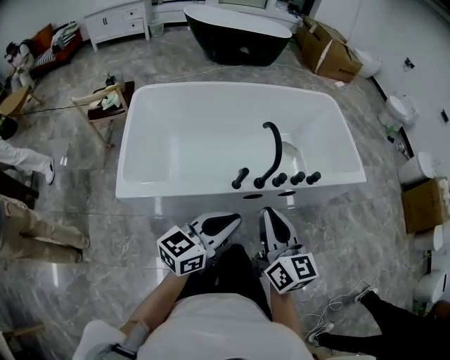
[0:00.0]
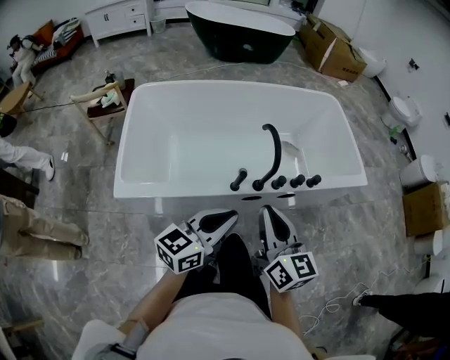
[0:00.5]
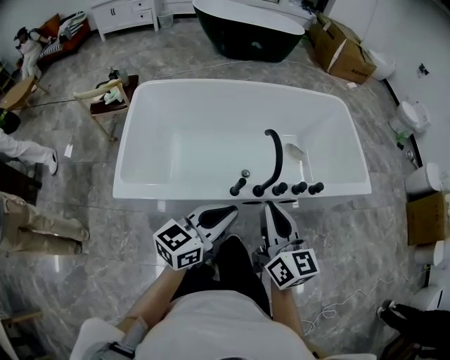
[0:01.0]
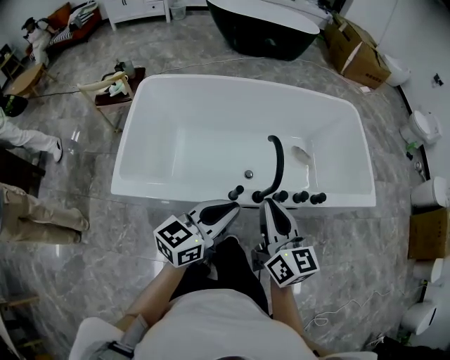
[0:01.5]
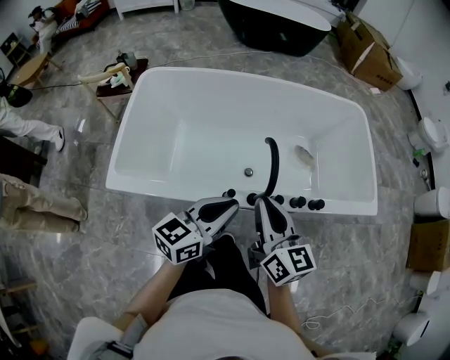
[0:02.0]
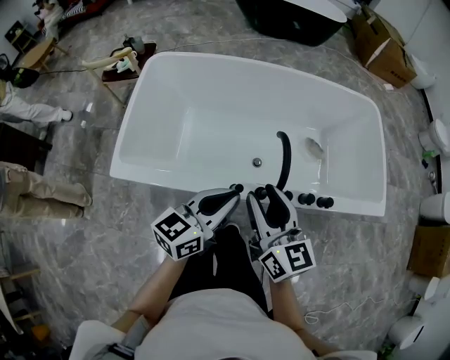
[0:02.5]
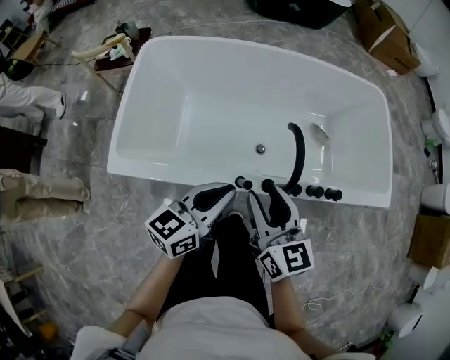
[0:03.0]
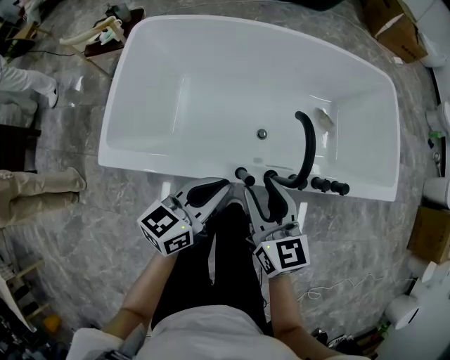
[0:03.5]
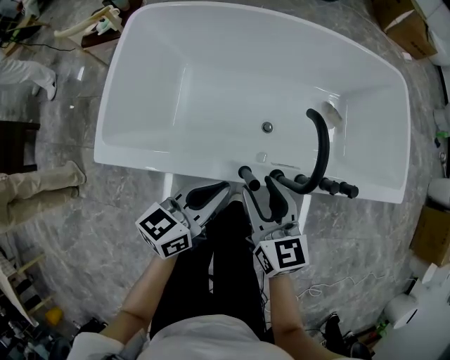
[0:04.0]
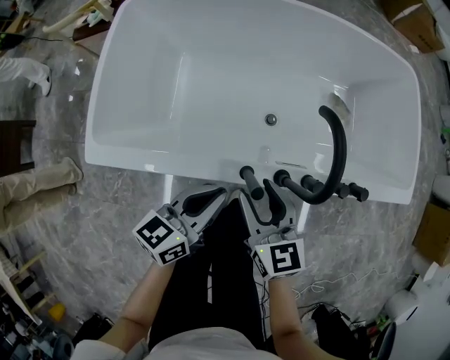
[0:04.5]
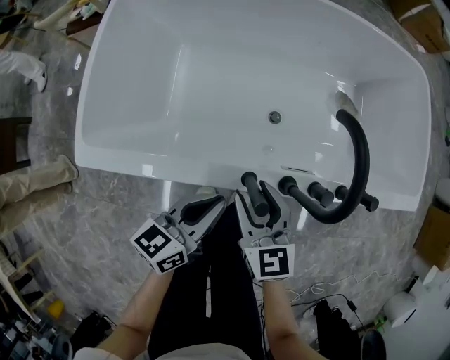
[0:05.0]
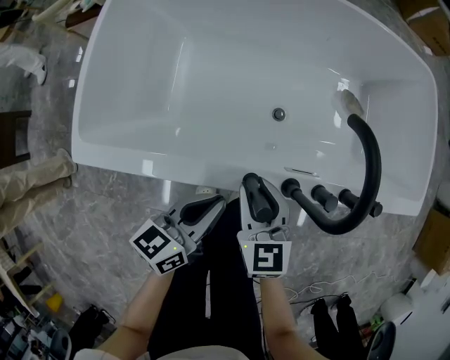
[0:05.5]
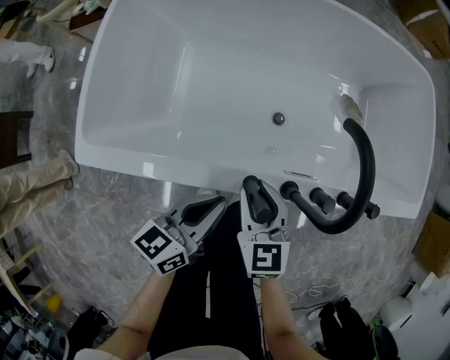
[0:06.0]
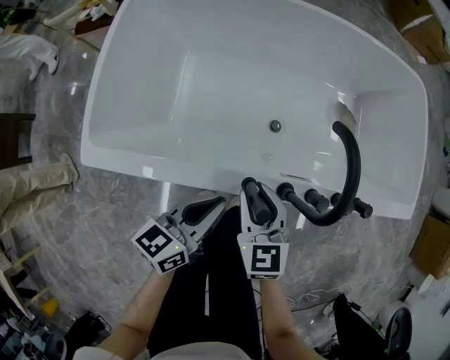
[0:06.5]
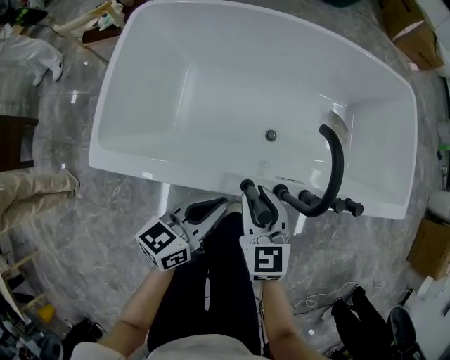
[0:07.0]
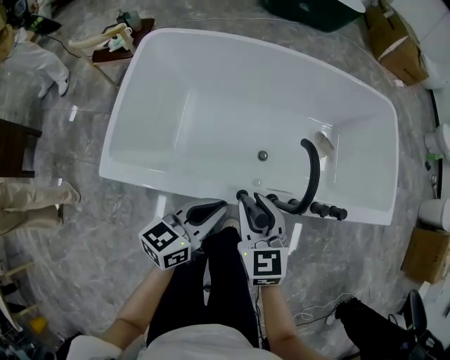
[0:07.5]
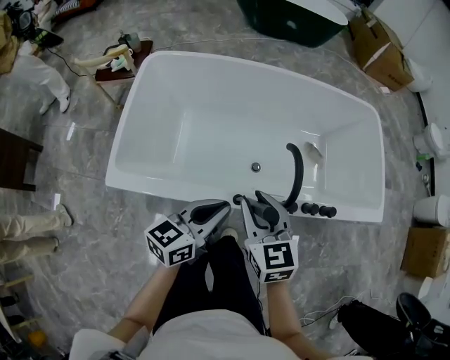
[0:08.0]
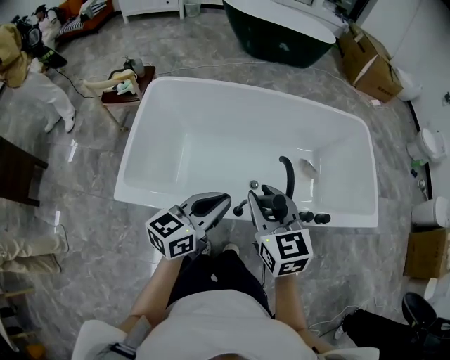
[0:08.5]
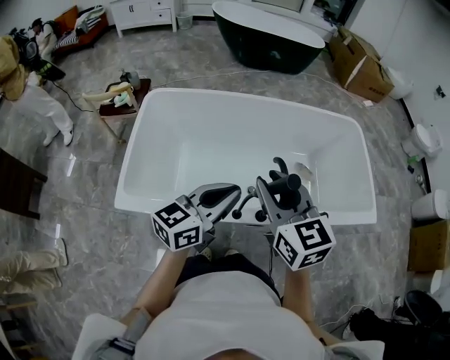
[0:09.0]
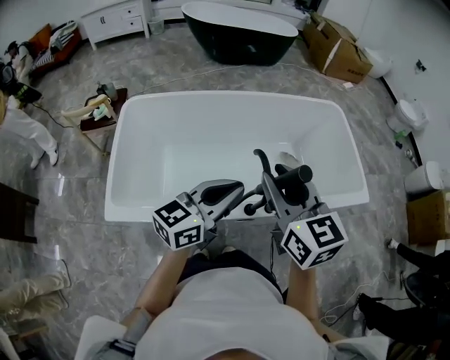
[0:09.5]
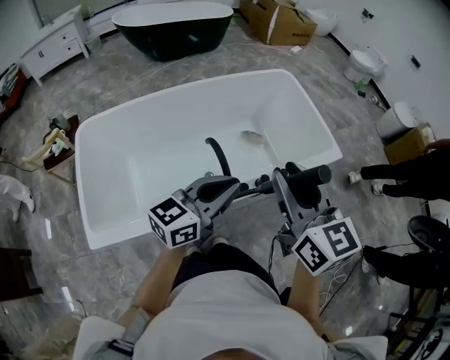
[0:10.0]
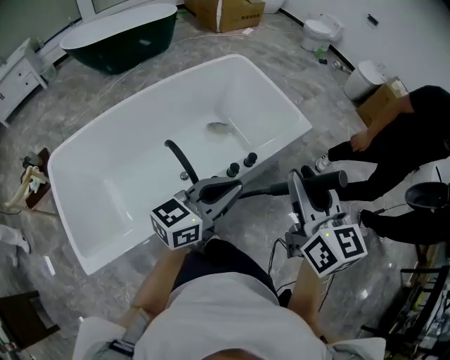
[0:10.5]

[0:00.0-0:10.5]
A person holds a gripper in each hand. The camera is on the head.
0:00.0 to 0:02.0: Both grippers travel together forward, roughly 15 cm.
0:02.0 to 0:04.0: Both grippers travel together downward and to the left, approximately 15 cm. The right gripper opens its fingers.
0:04.0 to 0:06.5: The grippers both shift downward by roughly 10 cm.
0:06.5 to 0:08.5: Both grippers travel together upward, roughly 25 cm.
0:08.5 to 0:10.5: The right gripper moves approximately 35 cm, and changes its angle by some 50 degrees. Meanwhile the left gripper moves about 30 cm, and swivels approximately 50 degrees.

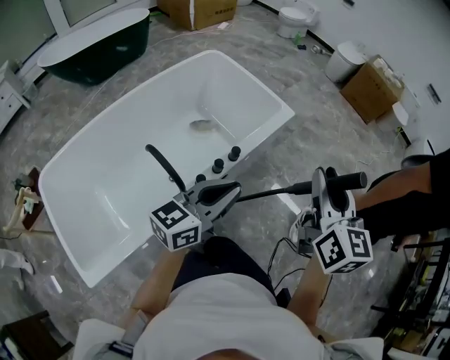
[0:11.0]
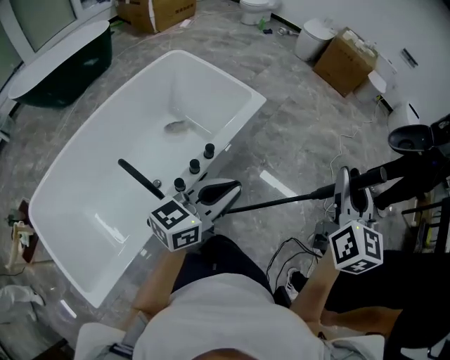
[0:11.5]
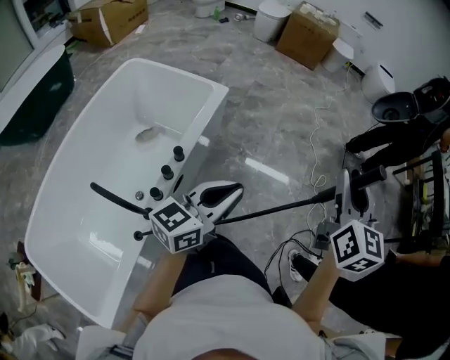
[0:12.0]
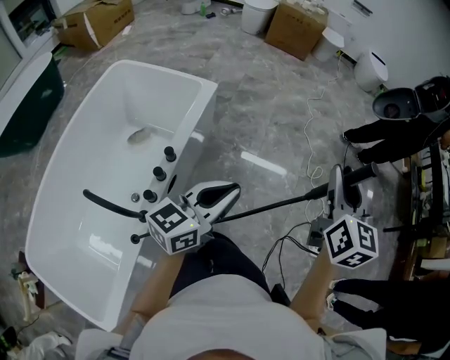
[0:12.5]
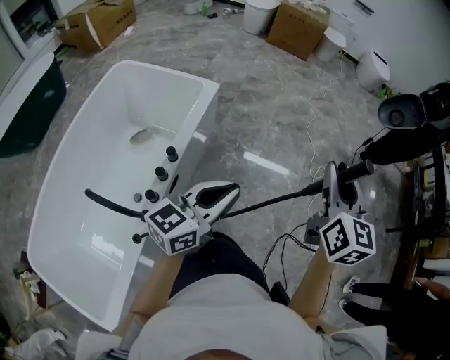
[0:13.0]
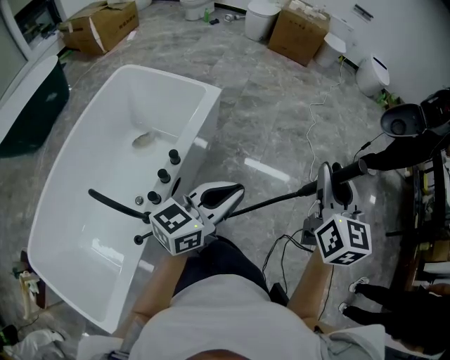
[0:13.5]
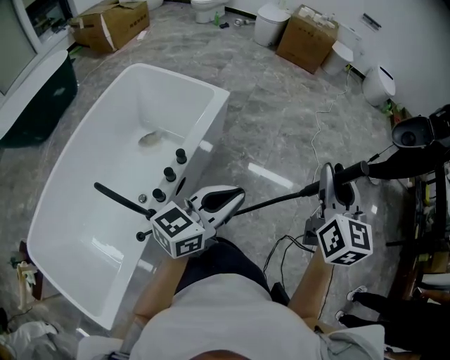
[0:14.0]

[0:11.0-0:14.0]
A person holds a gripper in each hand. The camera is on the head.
0:11.0 to 0:12.5: The right gripper shifts by roughly 25 cm, and rotates some 40 degrees. Meanwhile the left gripper moves roughly 20 cm, and swivels roughly 30 degrees.
0:12.5 to 0:14.0: The grippers move only a little.

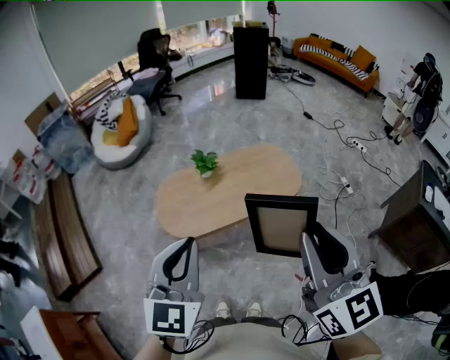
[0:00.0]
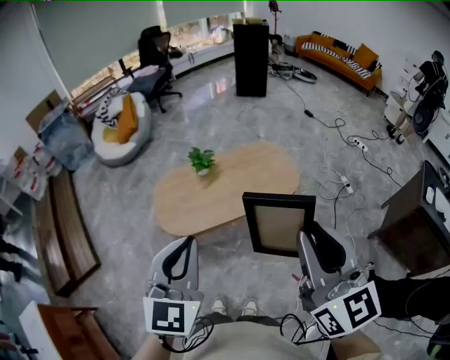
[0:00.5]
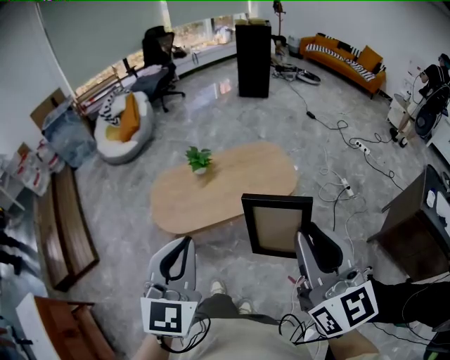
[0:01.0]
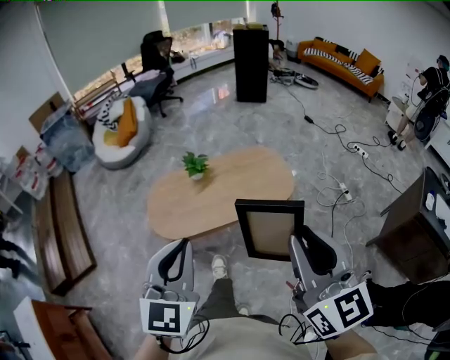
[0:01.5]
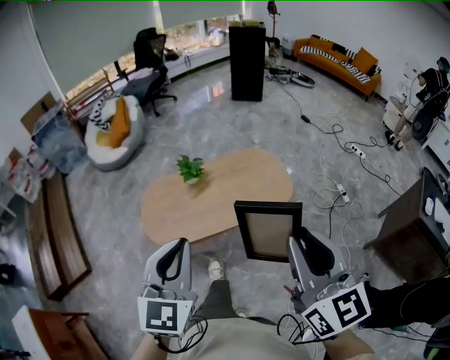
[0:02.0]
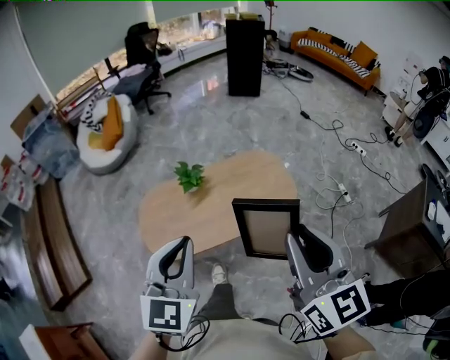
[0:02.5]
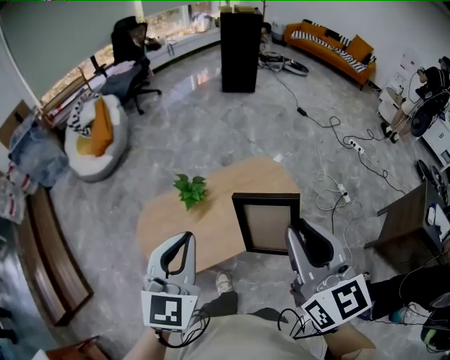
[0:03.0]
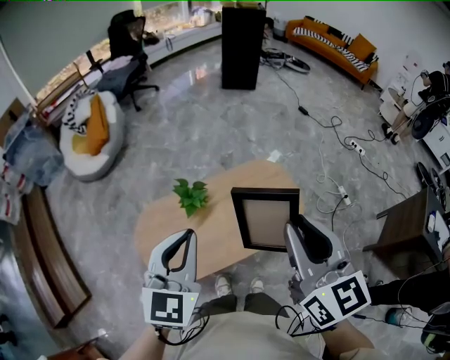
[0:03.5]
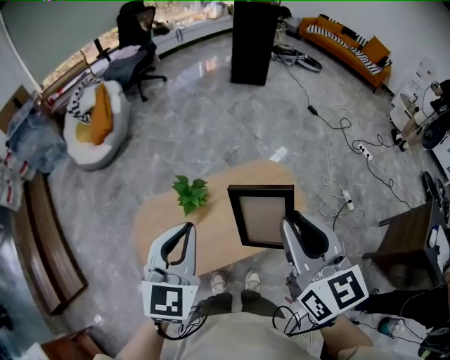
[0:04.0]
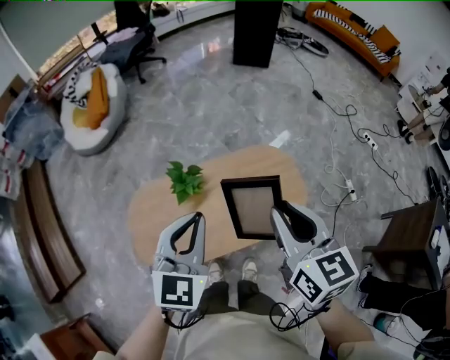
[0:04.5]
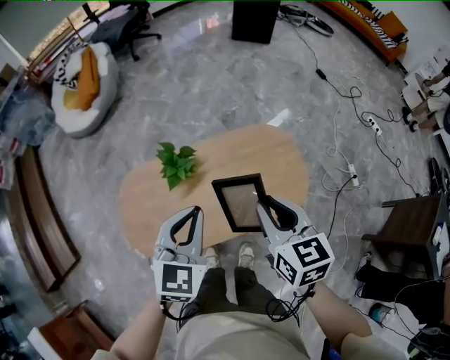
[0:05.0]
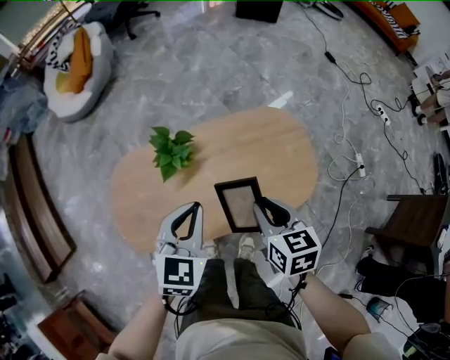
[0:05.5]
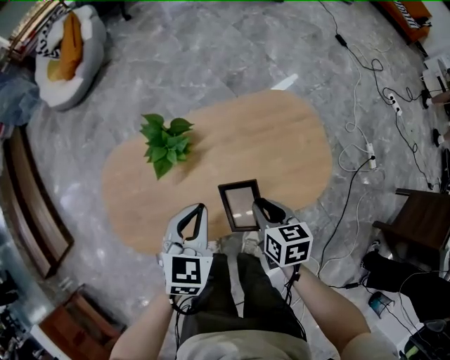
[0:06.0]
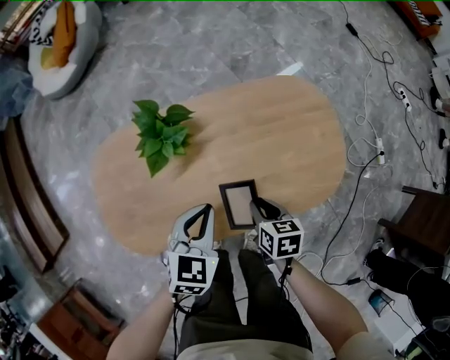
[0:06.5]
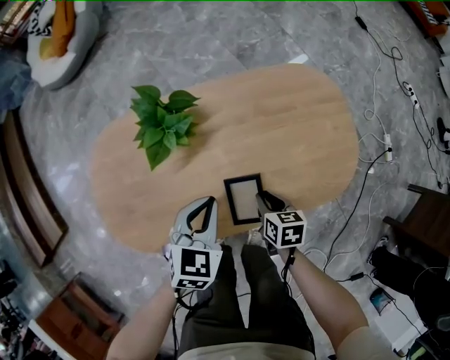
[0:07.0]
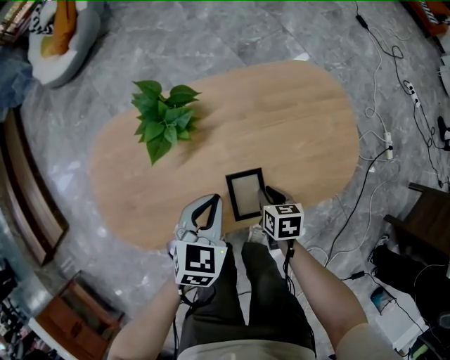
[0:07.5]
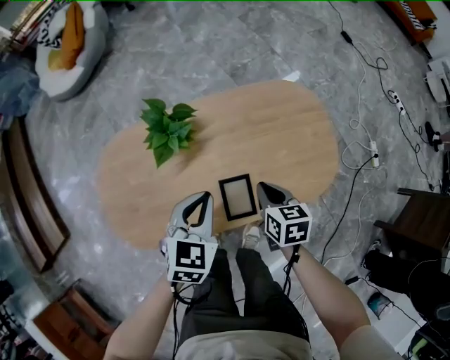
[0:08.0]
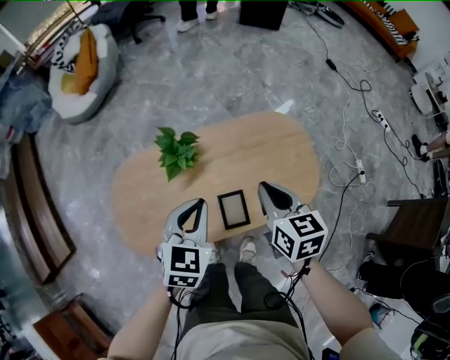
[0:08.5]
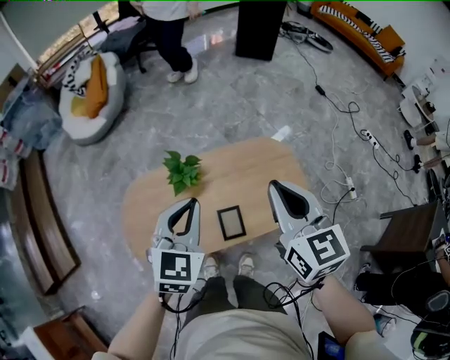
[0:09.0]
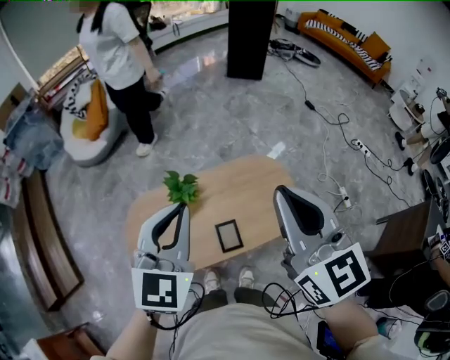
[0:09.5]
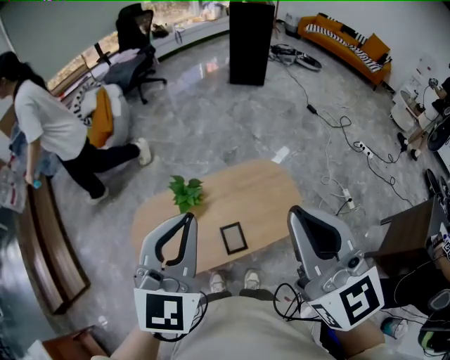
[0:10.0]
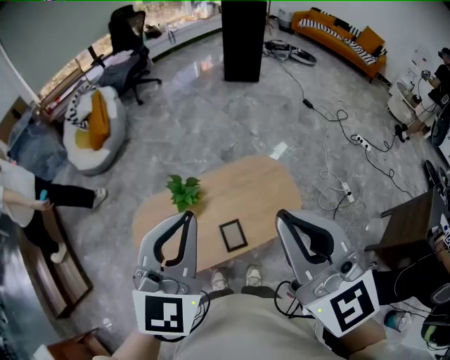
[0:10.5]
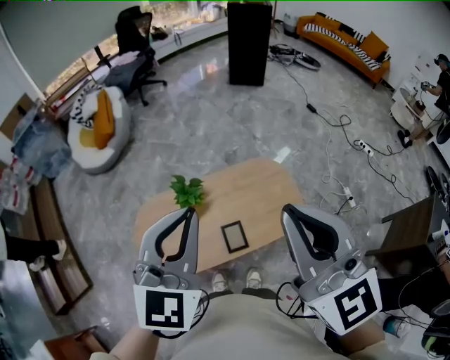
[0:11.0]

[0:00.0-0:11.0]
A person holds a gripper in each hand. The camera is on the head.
0:00.0 to 0:02.0: Both grippers travel together to the right and forward, about 10 cm.
0:02.0 to 0:03.5: The two grippers go roughly 30 cm forward.
0:03.5 to 0:05.5: Both grippers travel together downward, approximately 30 cm. The right gripper angles its fingers downward, by about 30 degrees.
0:05.5 to 0:07.5: The grippers both shift downward by about 30 cm. The right gripper rotates roughly 20 degrees.
0:07.5 to 0:09.0: The right gripper heads upward, covering some 60 cm, and angles its fingers upward, by some 50 degrees. The left gripper heads upward, covering roughly 35 cm, and rotates roughly 20 degrees.
0:09.0 to 0:11.0: The right gripper heads upward and backward, covering about 25 cm, and turns by roughly 20 degrees; the left gripper is displaced upward by roughly 20 cm.

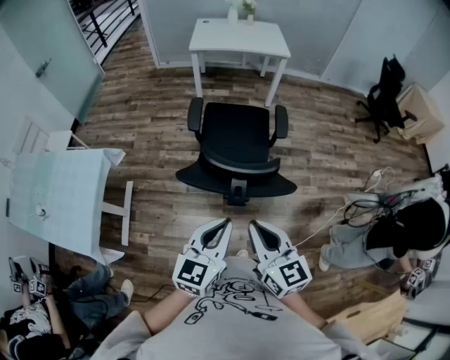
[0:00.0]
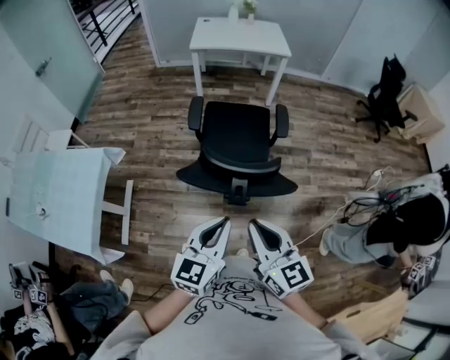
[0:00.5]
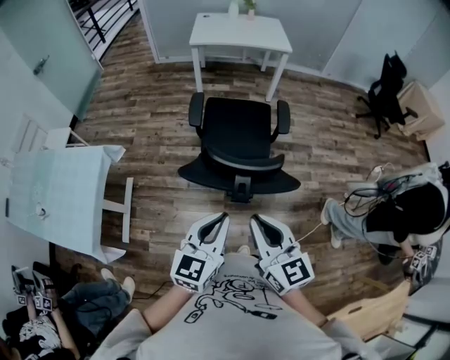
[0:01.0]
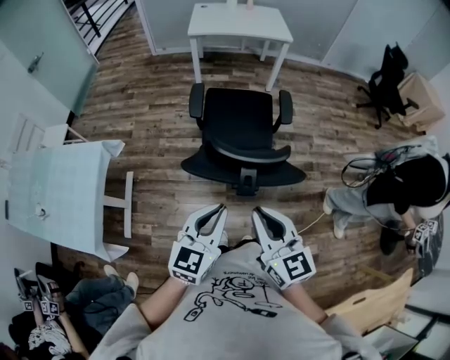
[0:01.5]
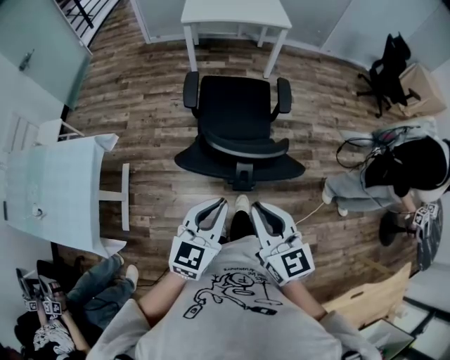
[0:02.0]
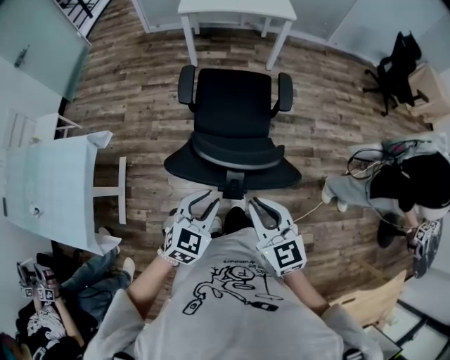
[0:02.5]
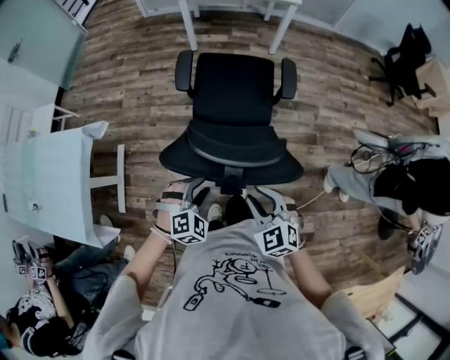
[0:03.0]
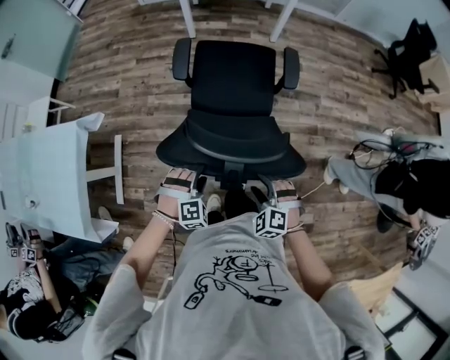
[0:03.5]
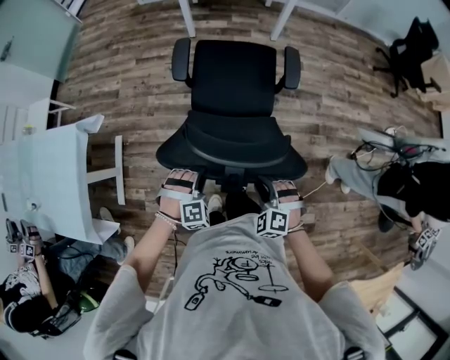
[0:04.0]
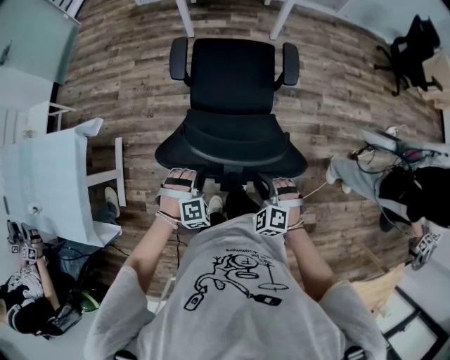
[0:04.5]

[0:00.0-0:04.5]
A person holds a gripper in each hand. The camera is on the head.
0:00.0 to 0:02.0: The left gripper ends up some 5 cm from where it was.
0:02.0 to 0:04.5: The two grippers go about 25 cm downward. The right gripper angles its fingers downward, by some 40 degrees, and opens and closes again, while the left gripper rotates around the line of its fingers by roughly 60 degrees, clockwise from behind, and opens up.
